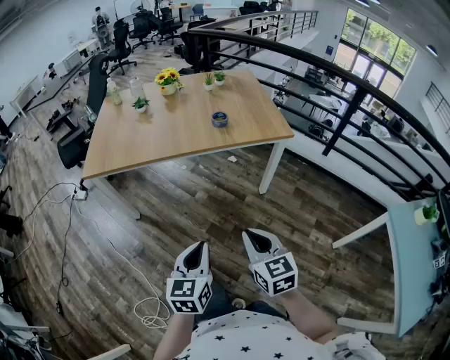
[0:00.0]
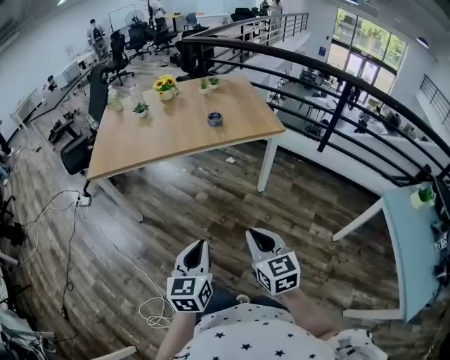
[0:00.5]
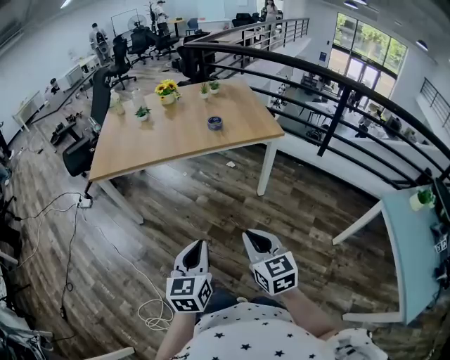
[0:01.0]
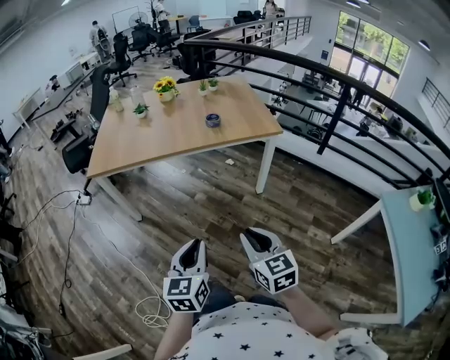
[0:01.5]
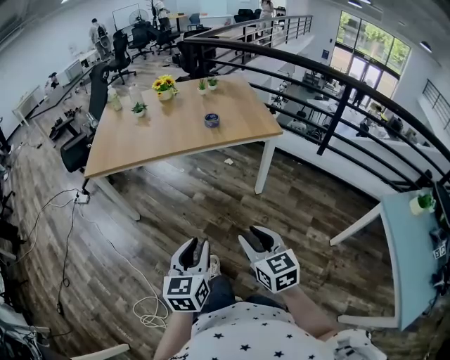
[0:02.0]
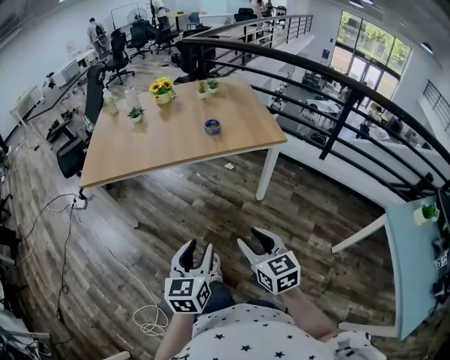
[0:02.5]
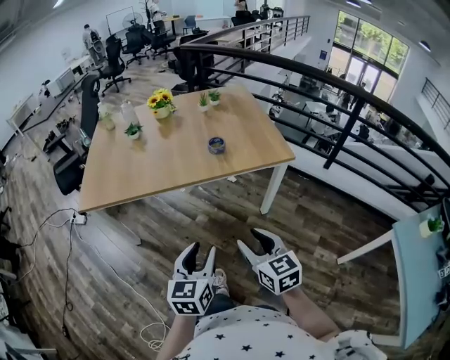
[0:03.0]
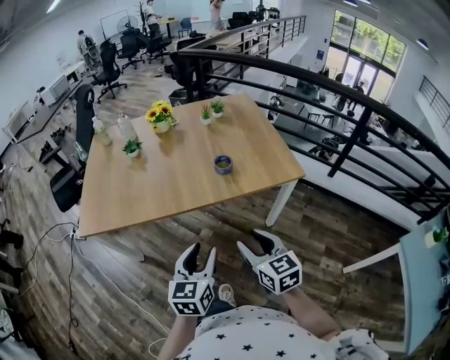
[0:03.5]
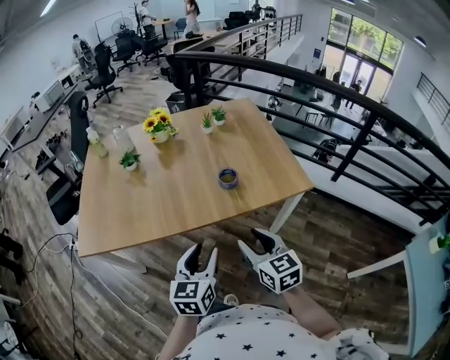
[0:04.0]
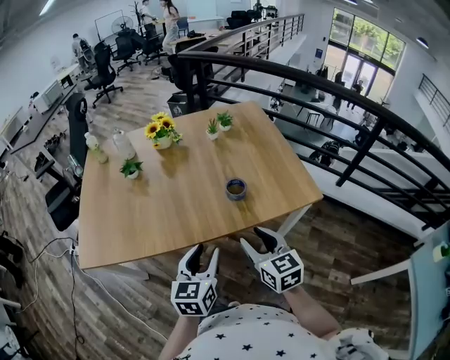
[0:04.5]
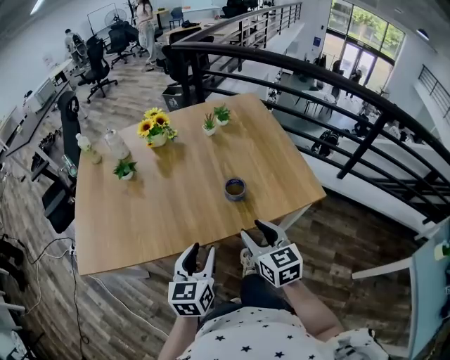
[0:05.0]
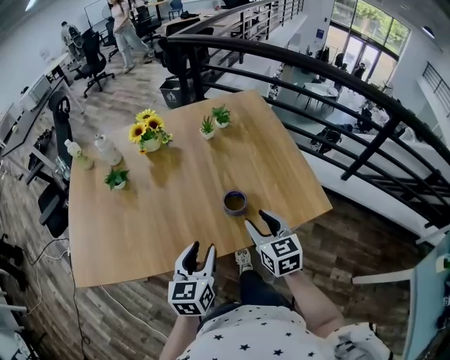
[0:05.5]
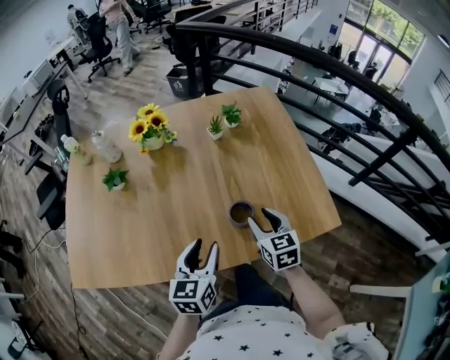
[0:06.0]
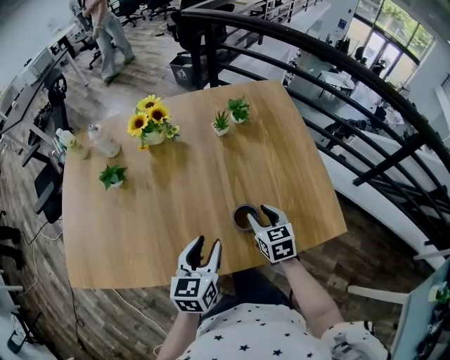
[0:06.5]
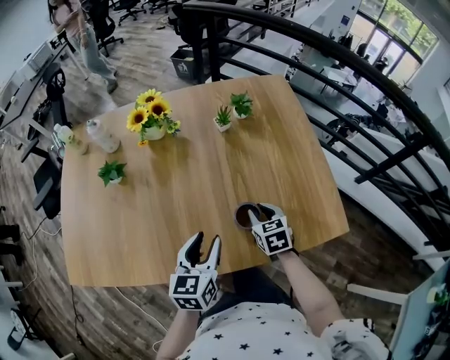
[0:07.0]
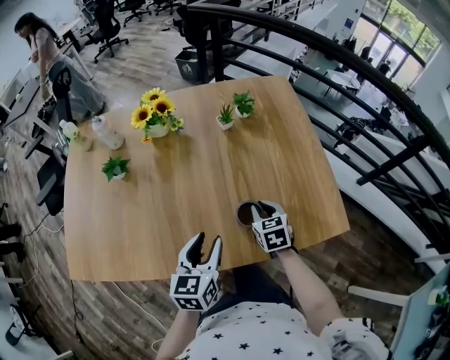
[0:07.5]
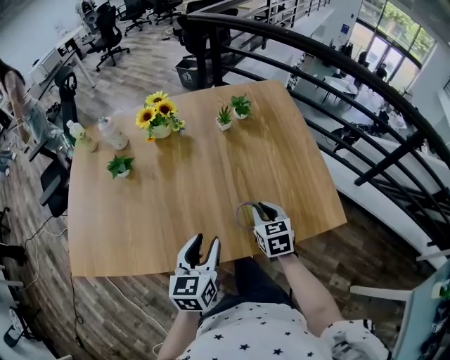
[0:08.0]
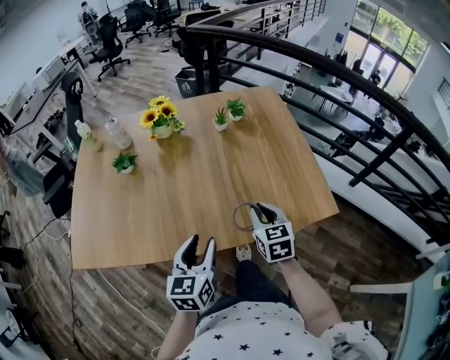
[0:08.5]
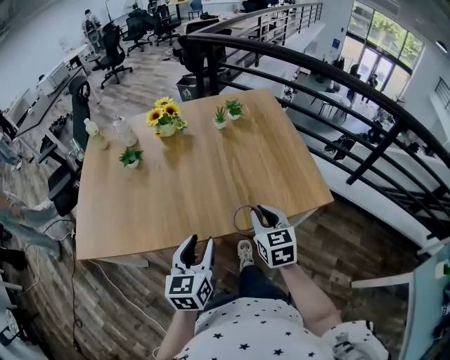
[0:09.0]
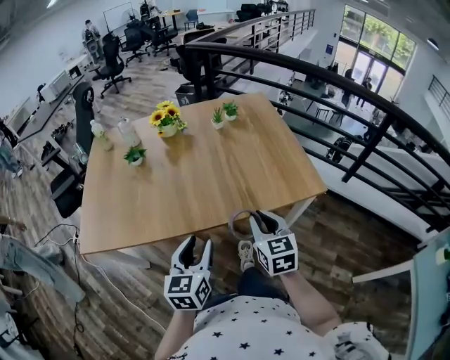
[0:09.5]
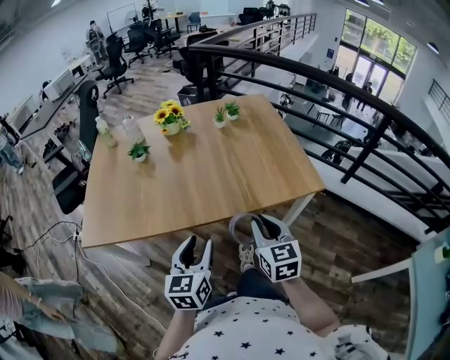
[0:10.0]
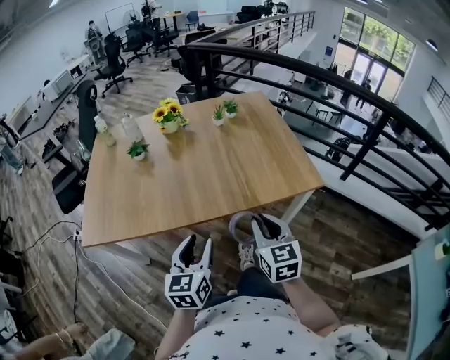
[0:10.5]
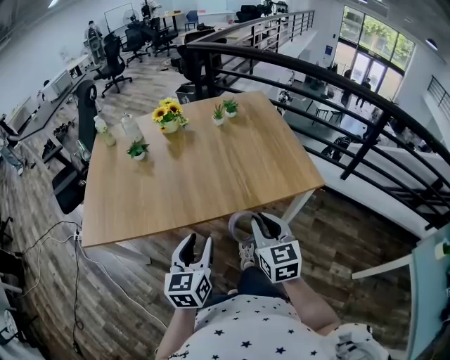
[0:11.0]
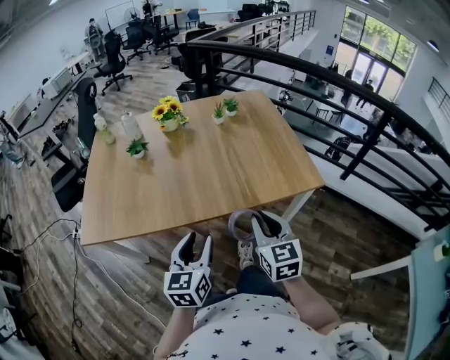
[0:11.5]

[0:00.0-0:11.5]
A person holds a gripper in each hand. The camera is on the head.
0:00.0 to 0:02.0: The grippers both shift backward by about 5 cm. The left gripper opens up; the right gripper opens its fingers.
0:02.0 to 0:04.0: The pair of grippers is taken forward, some 40 cm.
0:04.0 to 0:06.0: Both grippers travel together forward, approximately 30 cm.
0:06.0 to 0:07.5: The right gripper shifts approximately 10 cm downward and forward, and closes.
0:07.5 to 0:09.5: The right gripper travels backward and upward by approximately 30 cm, and turns by some 20 degrees. Meanwhile the left gripper is displaced backward by some 20 cm.
0:09.5 to 0:11.5: The right gripper ends up some 5 cm from where it was.

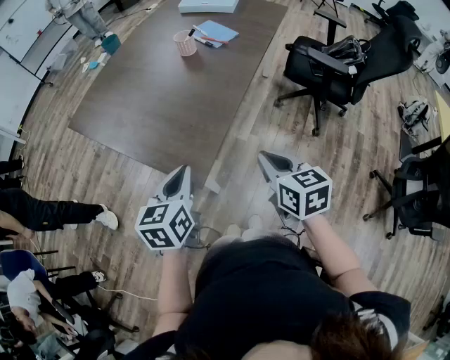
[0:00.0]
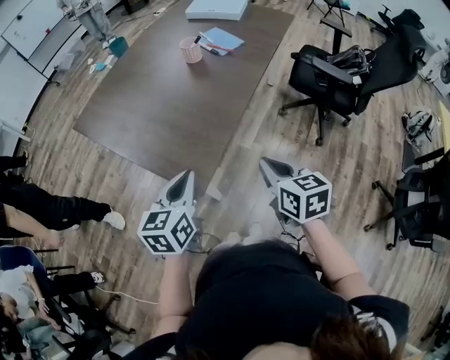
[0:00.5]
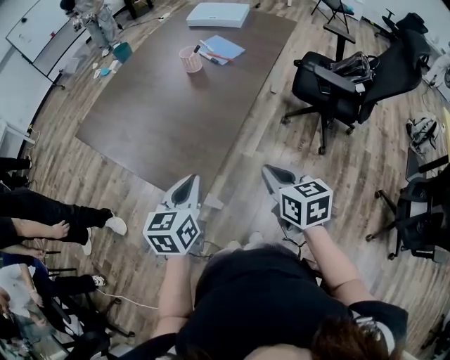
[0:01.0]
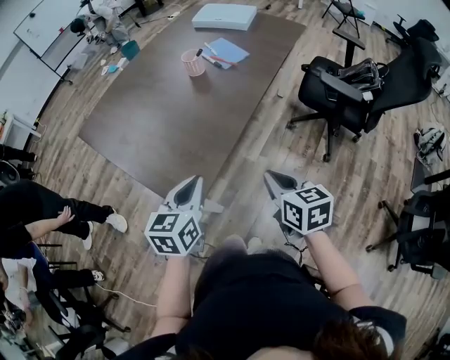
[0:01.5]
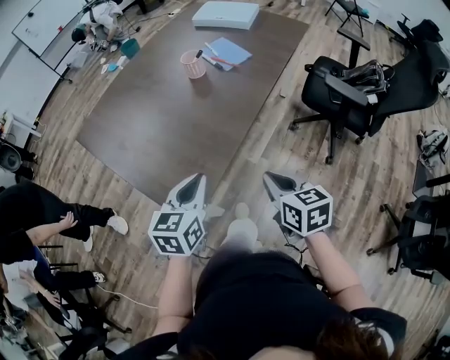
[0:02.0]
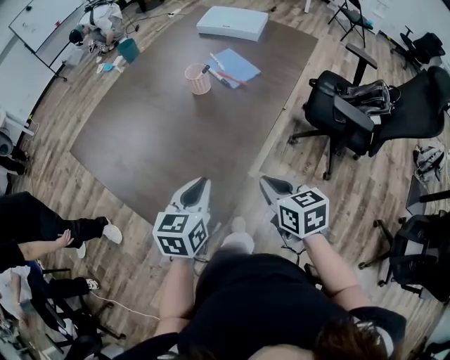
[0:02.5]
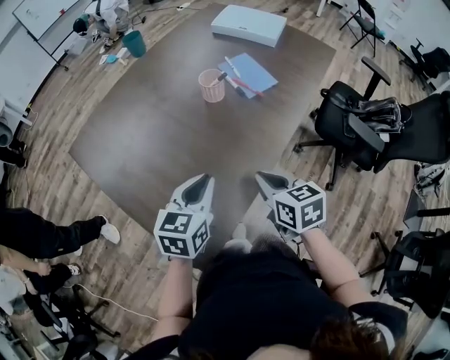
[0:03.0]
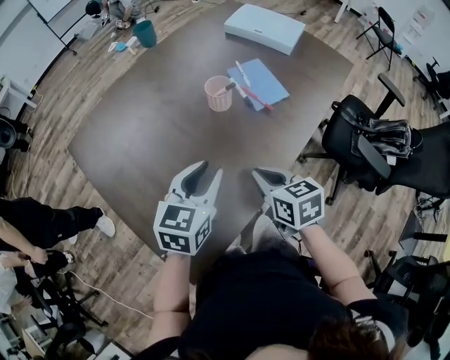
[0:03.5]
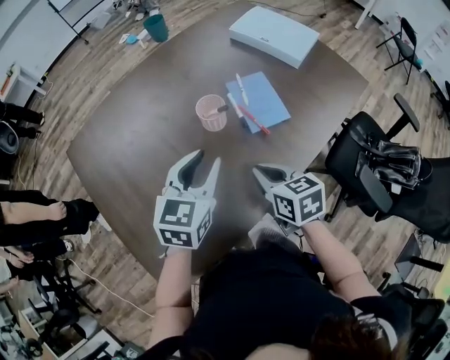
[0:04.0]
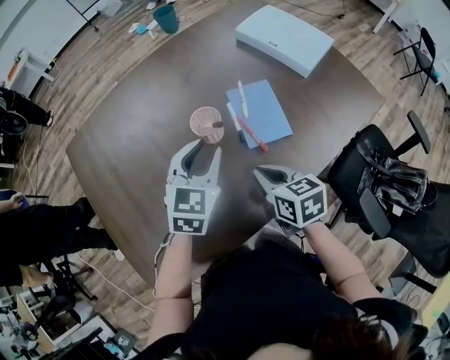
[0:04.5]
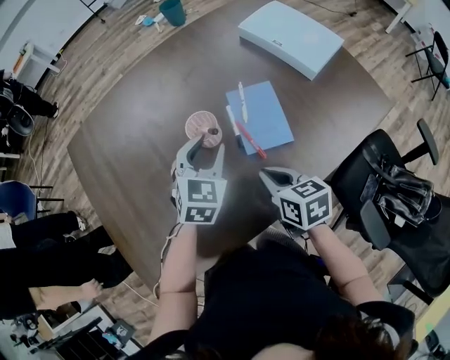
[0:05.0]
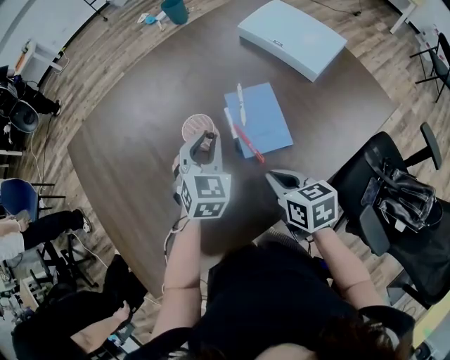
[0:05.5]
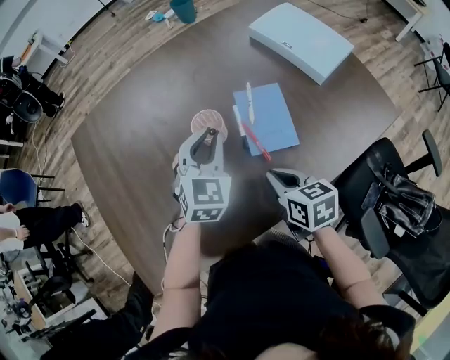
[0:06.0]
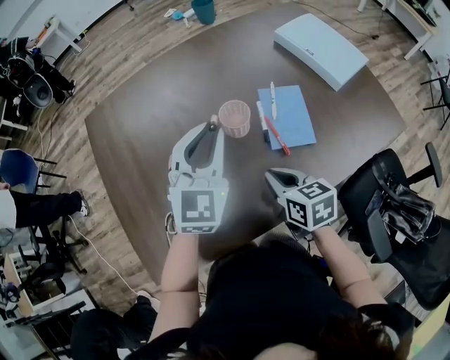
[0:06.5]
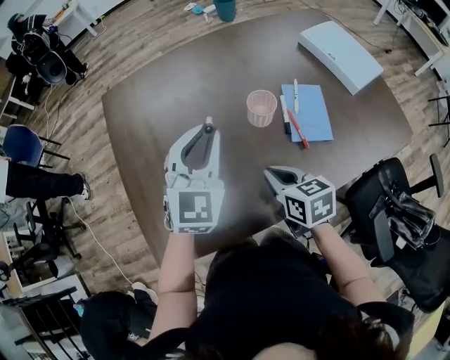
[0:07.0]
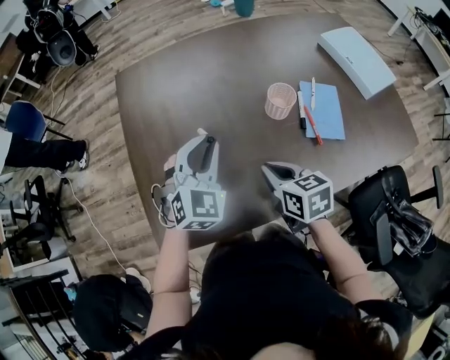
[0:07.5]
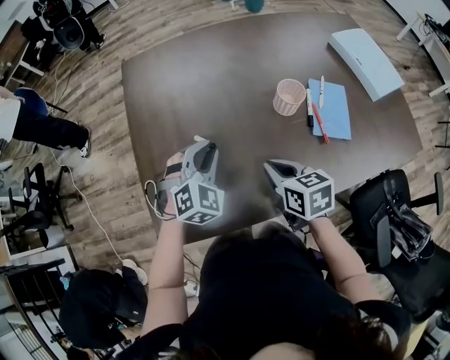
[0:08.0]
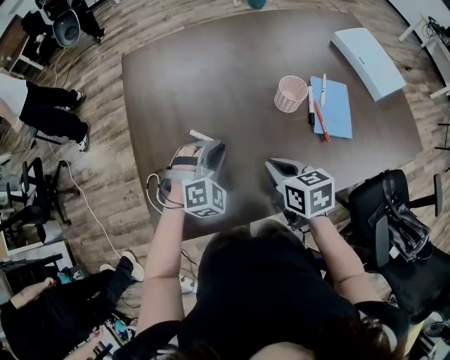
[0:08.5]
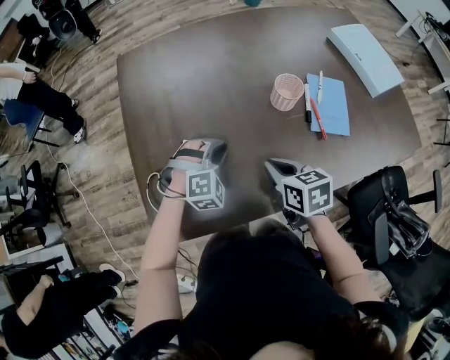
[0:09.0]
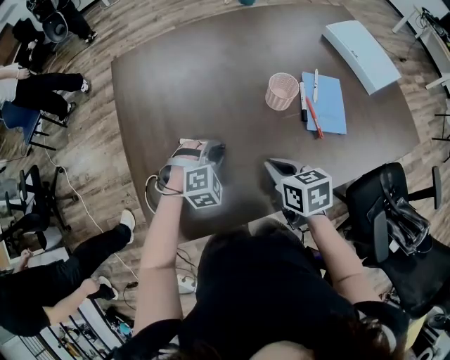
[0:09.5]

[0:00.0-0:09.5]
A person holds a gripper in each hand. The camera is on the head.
0:00.0 to 0:02.0: Both grippers travel together forward and to the right, some 10 cm.
0:02.0 to 0:04.0: The grippers both shift forward by some 35 cm. The left gripper opens. The right gripper rotates about 20 degrees.
0:04.0 to 0:05.5: The left gripper is displaced forward, to the right and downward by about 20 cm, and rotates approximately 30 degrees. The right gripper moves to the right and forward, roughly 10 cm.
0:05.5 to 0:07.5: Both grippers move to the left, roughly 25 cm.
0:07.5 to 0:09.5: The left gripper heads downward, covering about 15 cm, and tips its fingers downward by approximately 30 degrees.

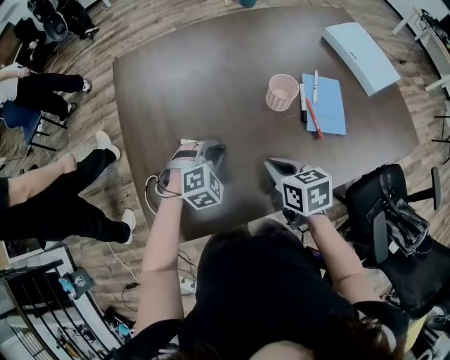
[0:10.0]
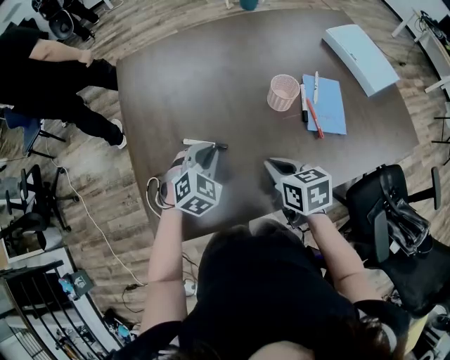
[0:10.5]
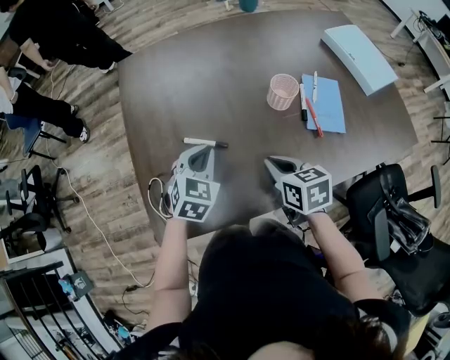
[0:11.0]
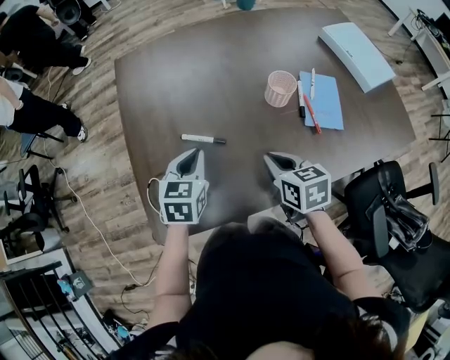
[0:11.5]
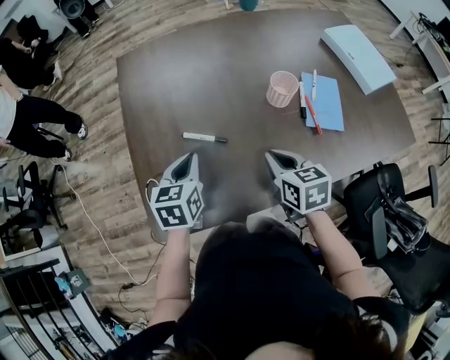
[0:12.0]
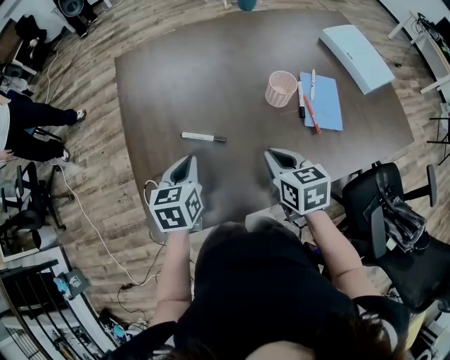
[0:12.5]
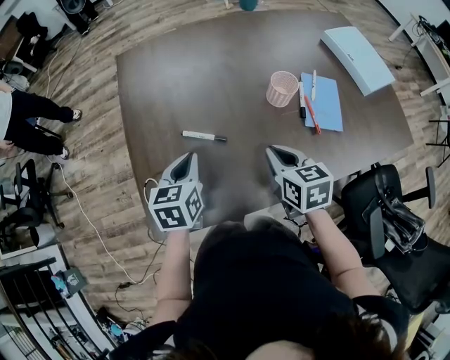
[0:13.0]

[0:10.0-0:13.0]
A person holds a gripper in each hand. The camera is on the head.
0:10.0 to 0:11.5: The left gripper travels upward and to the left by approximately 10 cm, and rotates around the line of its fingers by roughly 60 degrees, counterclockwise from behind.
0:11.5 to 0:13.0: The grippers make only small movements.

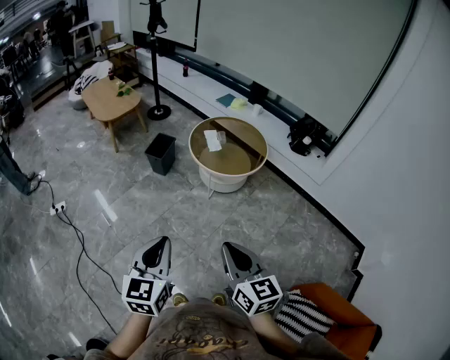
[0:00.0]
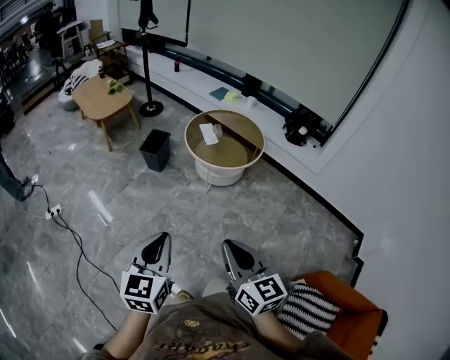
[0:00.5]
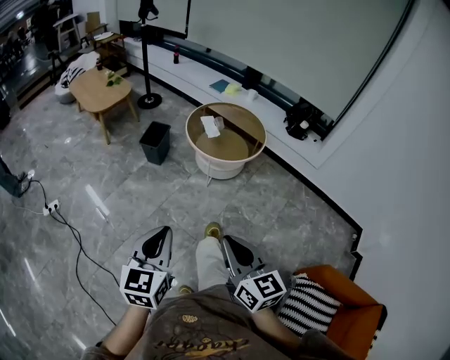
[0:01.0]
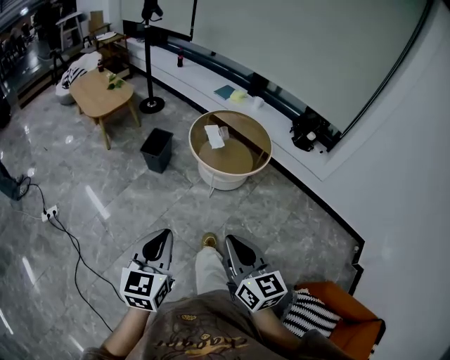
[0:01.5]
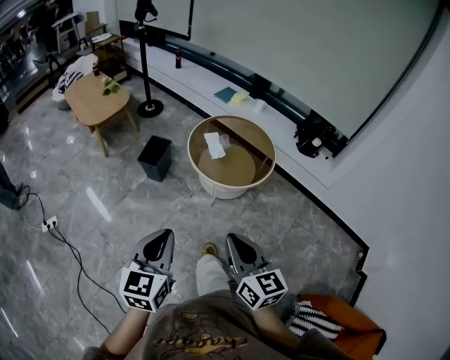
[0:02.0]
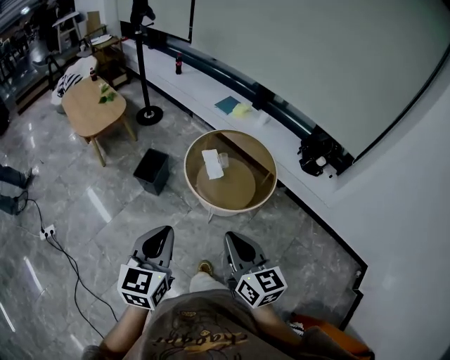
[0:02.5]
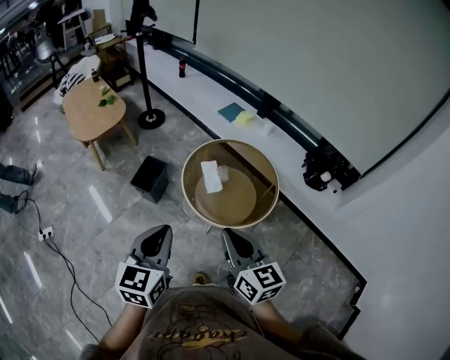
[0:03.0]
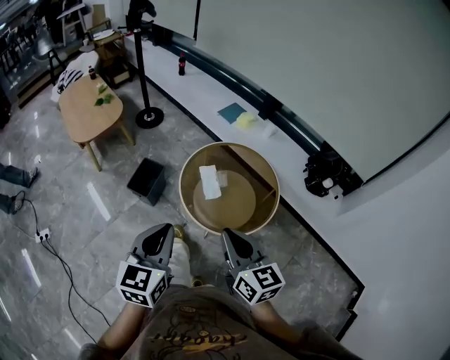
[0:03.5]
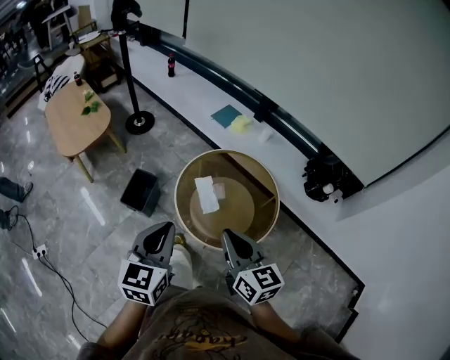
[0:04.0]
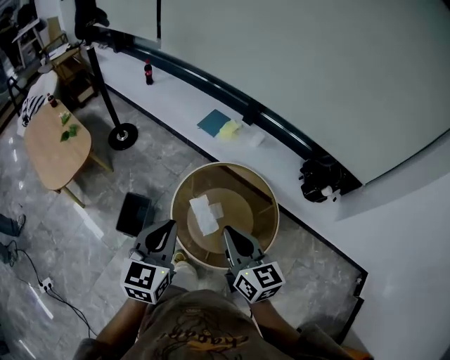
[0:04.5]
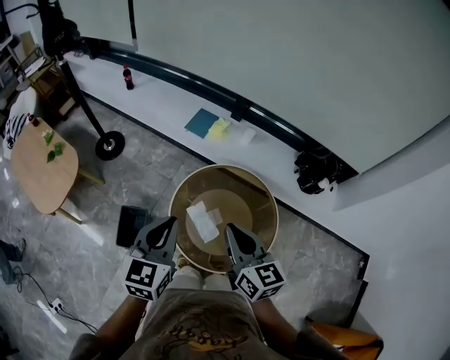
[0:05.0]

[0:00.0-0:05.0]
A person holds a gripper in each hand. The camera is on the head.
0:00.0 to 0:02.5: The grippers both shift forward by approximately 35 cm.
0:02.5 to 0:05.0: The pair of grippers is taken forward, approximately 50 cm.
